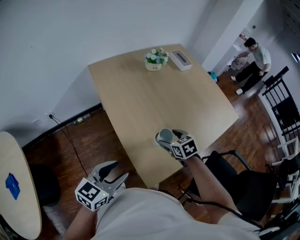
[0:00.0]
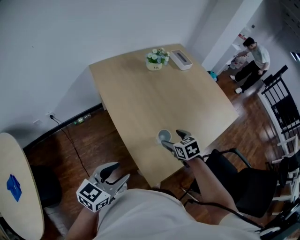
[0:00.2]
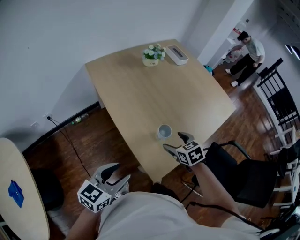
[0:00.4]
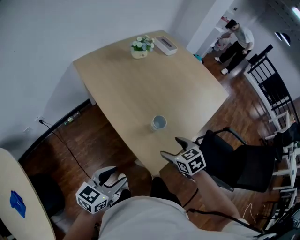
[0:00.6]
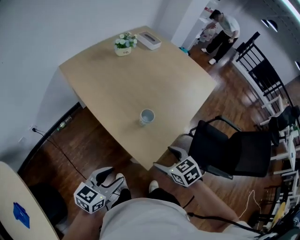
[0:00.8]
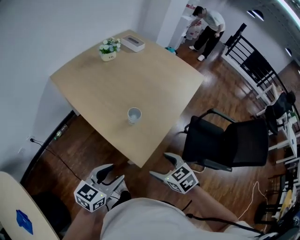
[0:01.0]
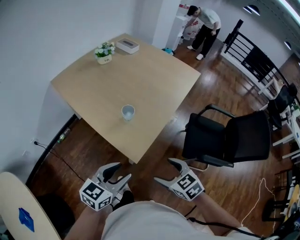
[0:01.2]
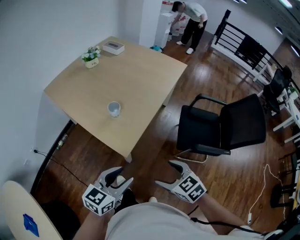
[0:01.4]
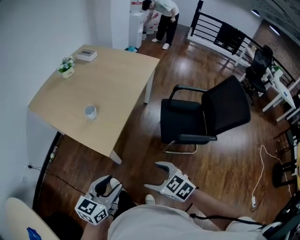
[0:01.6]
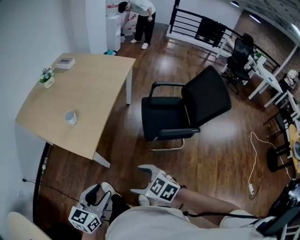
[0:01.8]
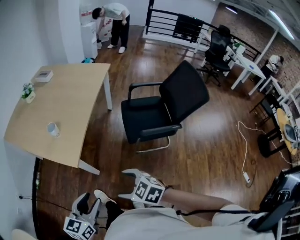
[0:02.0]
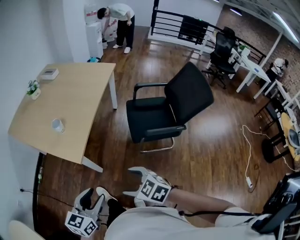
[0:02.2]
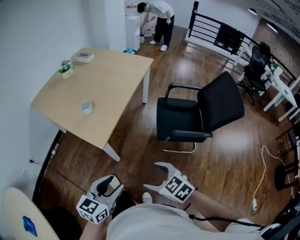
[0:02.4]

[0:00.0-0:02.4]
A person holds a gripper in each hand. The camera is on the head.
0.0 to 1.2 s: The left gripper is displaced backward and to the right by some 15 cm, and swivels about 20 degrees; the right gripper travels backward by about 35 cm.
1.2 to 2.4 s: The right gripper goes some 25 cm backward and to the right. The left gripper moves to the right and backward, about 25 cm.

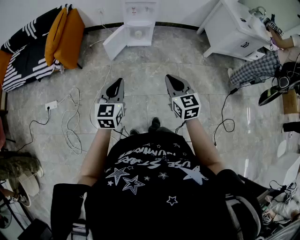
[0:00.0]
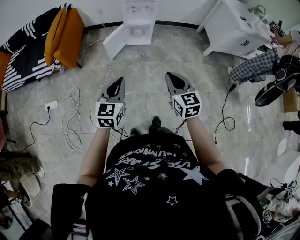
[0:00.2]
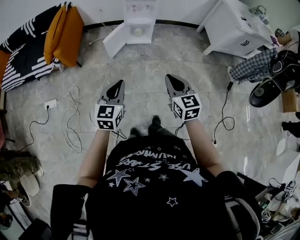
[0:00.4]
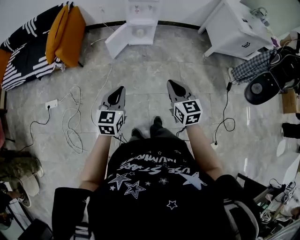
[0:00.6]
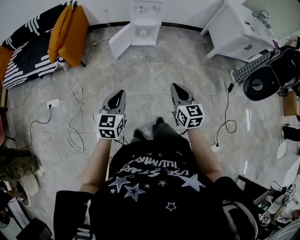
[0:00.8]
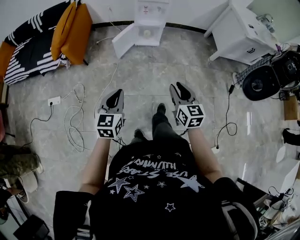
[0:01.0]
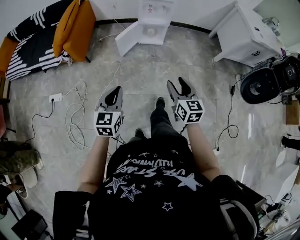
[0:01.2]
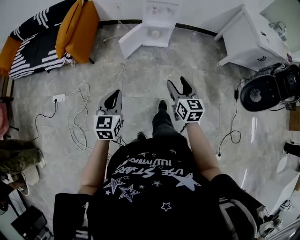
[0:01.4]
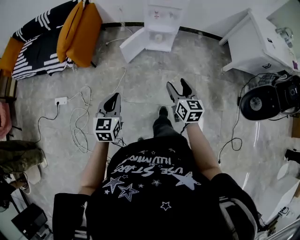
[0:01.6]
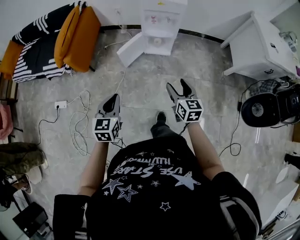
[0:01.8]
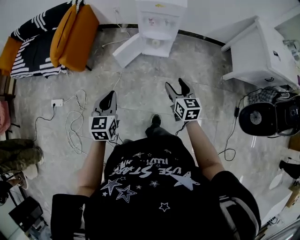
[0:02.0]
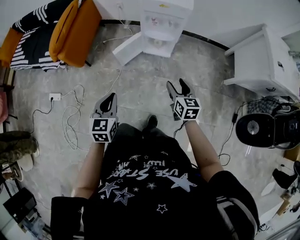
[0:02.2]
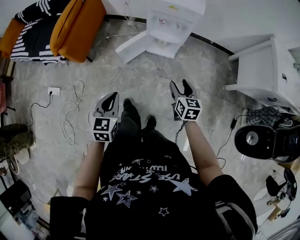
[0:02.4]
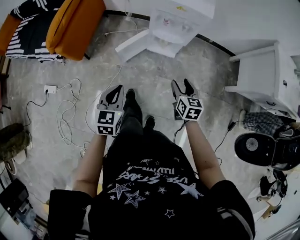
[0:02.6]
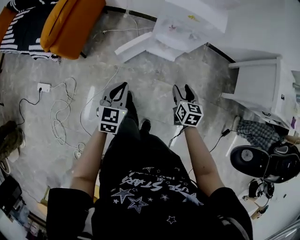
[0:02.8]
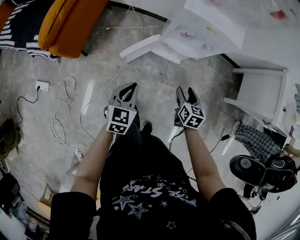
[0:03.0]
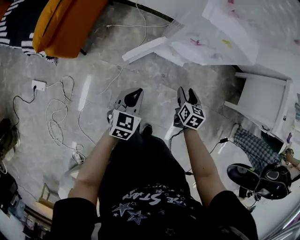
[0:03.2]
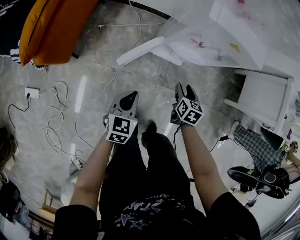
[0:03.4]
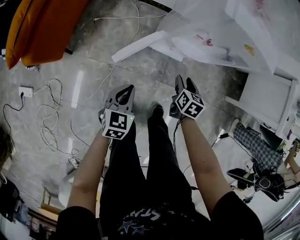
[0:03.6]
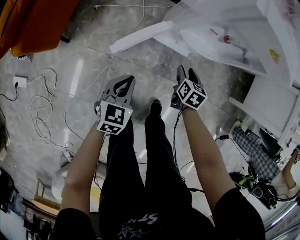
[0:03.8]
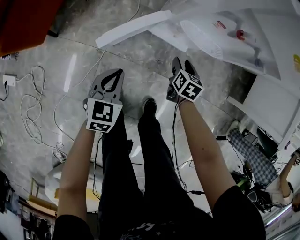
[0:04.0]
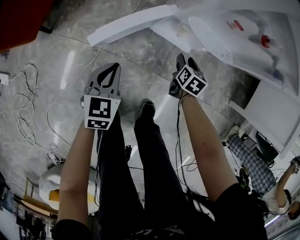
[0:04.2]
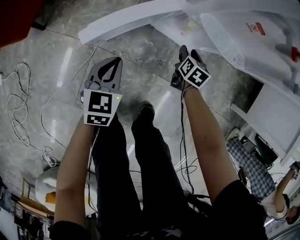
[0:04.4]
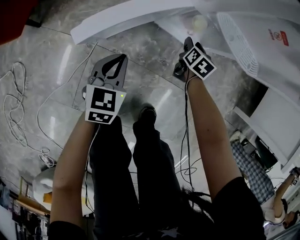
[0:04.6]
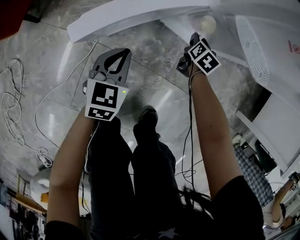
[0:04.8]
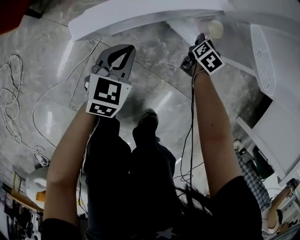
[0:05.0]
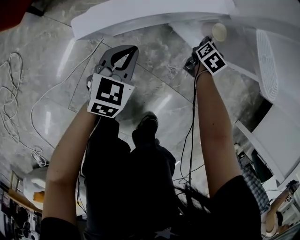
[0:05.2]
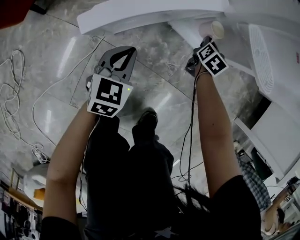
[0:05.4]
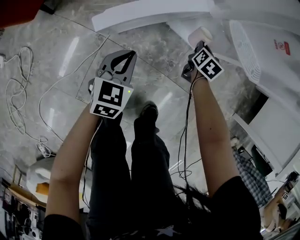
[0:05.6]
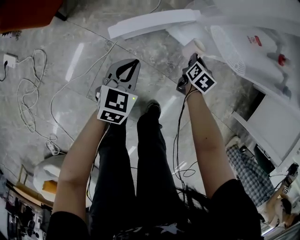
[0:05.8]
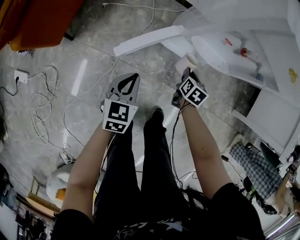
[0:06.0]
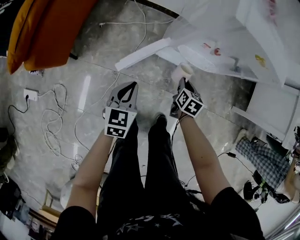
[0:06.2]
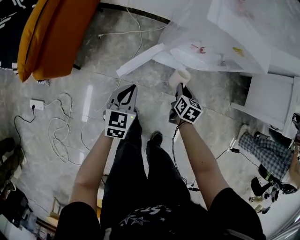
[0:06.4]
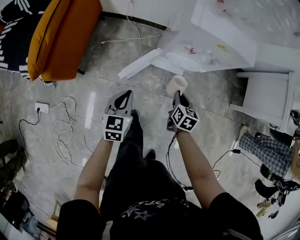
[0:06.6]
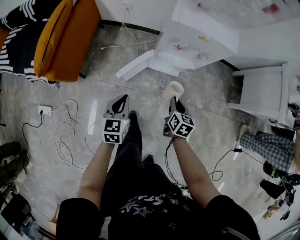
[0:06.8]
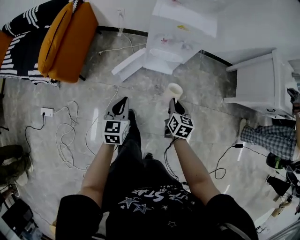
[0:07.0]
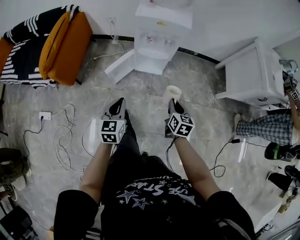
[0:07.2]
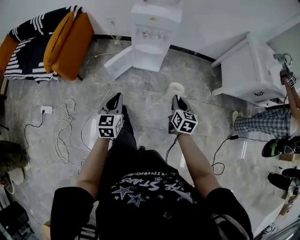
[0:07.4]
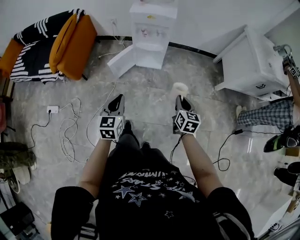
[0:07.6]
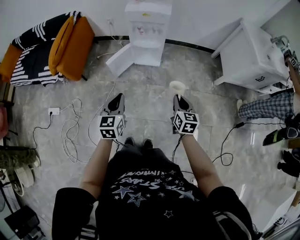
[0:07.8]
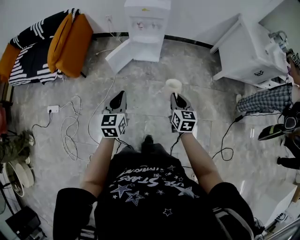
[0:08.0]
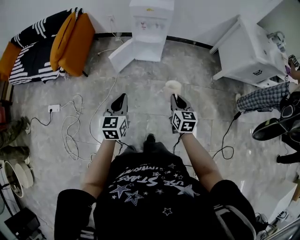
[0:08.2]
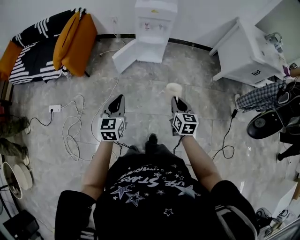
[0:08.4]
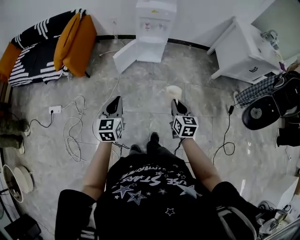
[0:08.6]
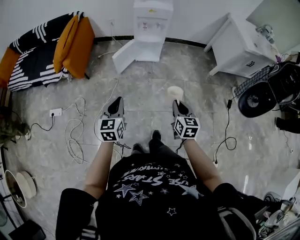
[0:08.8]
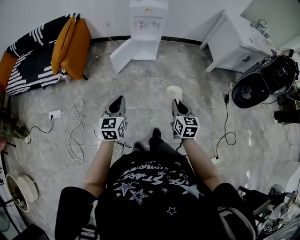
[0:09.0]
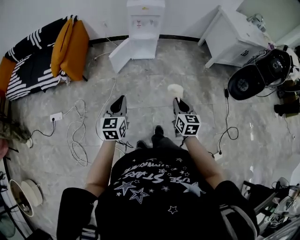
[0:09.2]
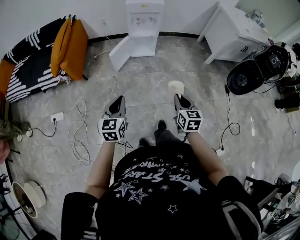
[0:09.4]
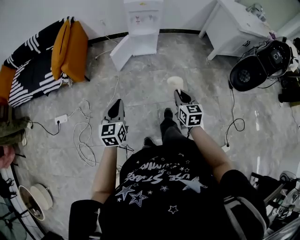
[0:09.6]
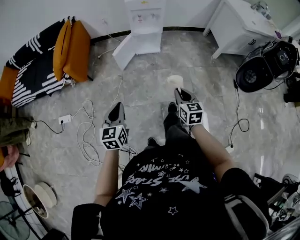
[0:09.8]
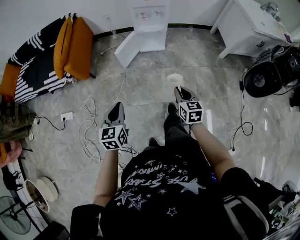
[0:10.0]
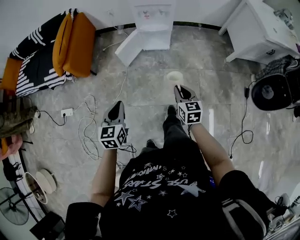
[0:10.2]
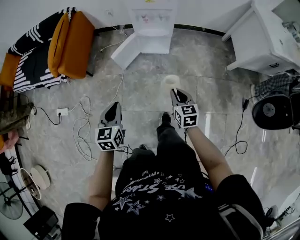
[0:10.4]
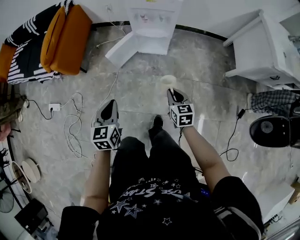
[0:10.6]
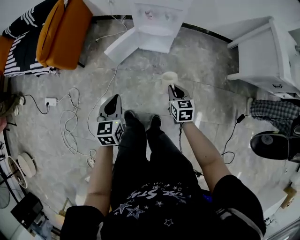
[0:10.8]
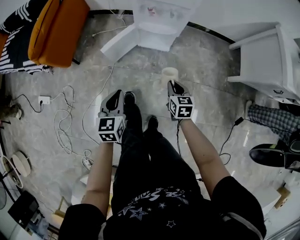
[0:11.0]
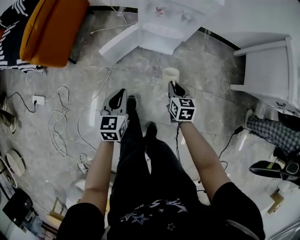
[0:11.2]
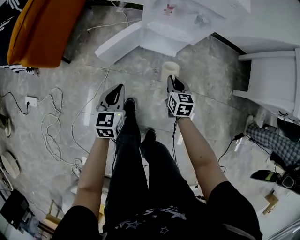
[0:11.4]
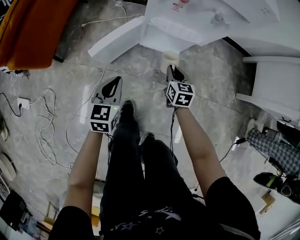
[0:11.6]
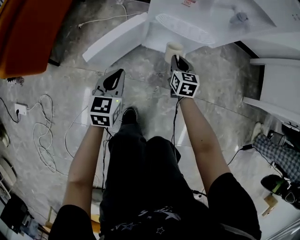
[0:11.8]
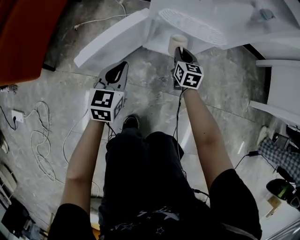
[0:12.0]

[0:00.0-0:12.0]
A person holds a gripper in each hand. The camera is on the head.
0.0 to 1.6 s: The left gripper heads to the left, forward and downward, covering about 10 cm. The right gripper travels forward and downward by some 15 cm, and opens up.
1.6 to 3.0 s: The right gripper heads forward and downward, covering roughly 35 cm, and rotates roughly 20 degrees; the left gripper is displaced forward by some 35 cm.
3.0 to 4.4 s: The left gripper is displaced downward by approximately 40 cm, while the right gripper goes approximately 50 cm downward and forward.
4.4 to 6.0 s: The right gripper travels upward and backward by some 15 cm, and closes up. Meanwhile the left gripper heads upward, covering some 15 cm.
6.0 to 7.6 s: Both grippers move upward, backward and to the right, roughly 60 cm. The right gripper rotates approximately 30 degrees.
7.6 to 9.0 s: The grippers both shift backward and to the left by roughly 25 cm.
9.0 to 10.4 s: The right gripper is displaced forward and downward by approximately 25 cm. The left gripper shifts roughly 15 cm forward.
10.4 to 12.0 s: The pair of grippers is taken forward, some 50 cm. The grippers both shift downward by approximately 40 cm.

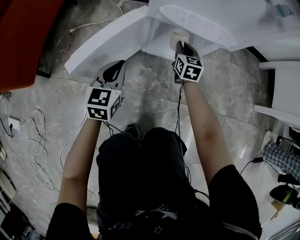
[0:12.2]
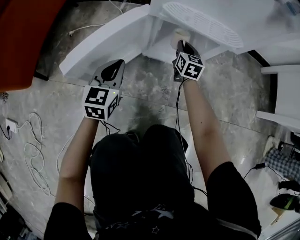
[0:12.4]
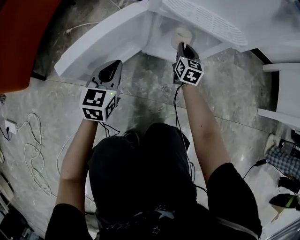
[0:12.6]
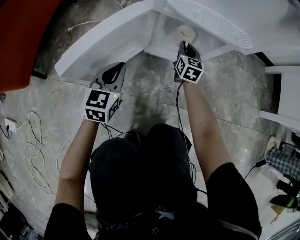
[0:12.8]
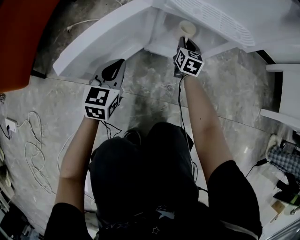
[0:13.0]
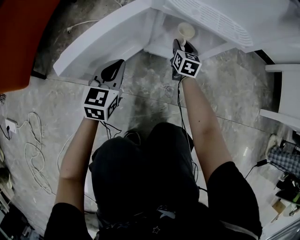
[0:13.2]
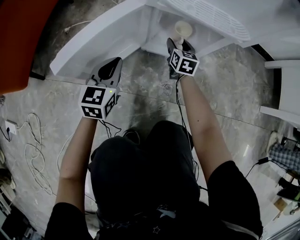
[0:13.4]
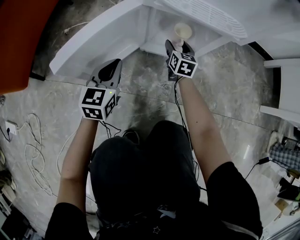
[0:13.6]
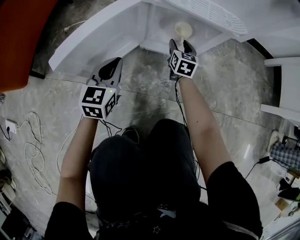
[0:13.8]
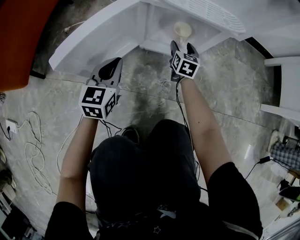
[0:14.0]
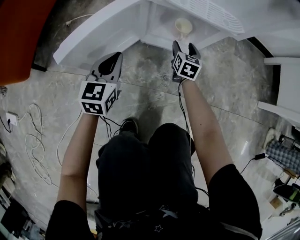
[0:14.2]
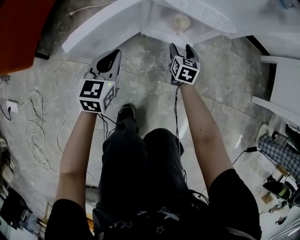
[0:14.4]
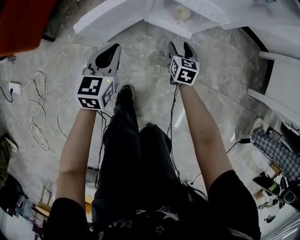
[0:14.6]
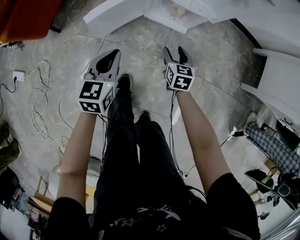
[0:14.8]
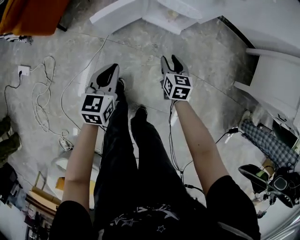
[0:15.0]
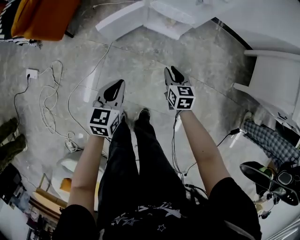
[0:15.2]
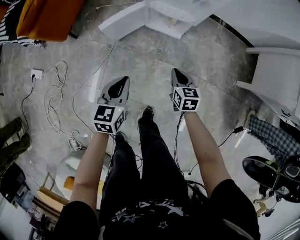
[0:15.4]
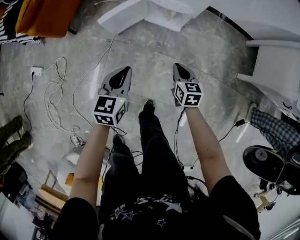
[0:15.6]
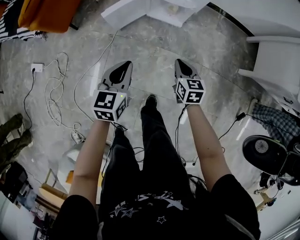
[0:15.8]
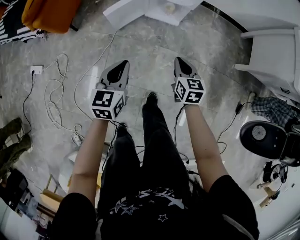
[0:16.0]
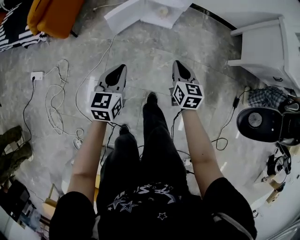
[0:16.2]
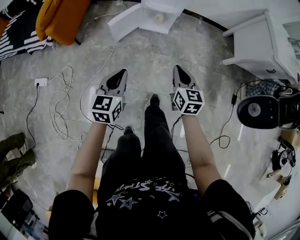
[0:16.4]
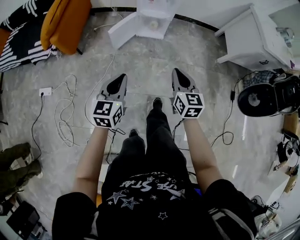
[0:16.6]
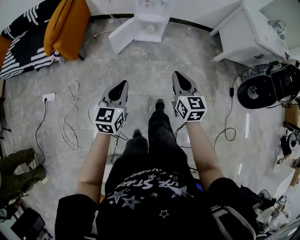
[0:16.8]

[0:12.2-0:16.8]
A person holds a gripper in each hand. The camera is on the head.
12.2 to 13.8 s: The left gripper travels downward by roughly 5 cm. Meanwhile the right gripper heads downward, covering approximately 10 cm, and opens.
13.8 to 15.2 s: Both grippers move upward and backward, about 50 cm. The right gripper turns by some 30 degrees, and closes.
15.2 to 16.8 s: The left gripper shifts roughly 40 cm backward and upward, and turns by about 20 degrees. The right gripper travels upward and backward by roughly 50 cm, swivels approximately 30 degrees, and closes.

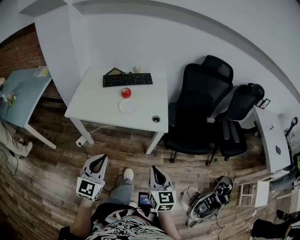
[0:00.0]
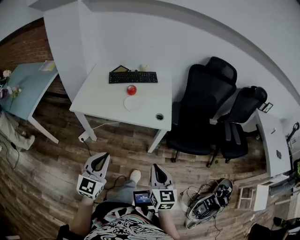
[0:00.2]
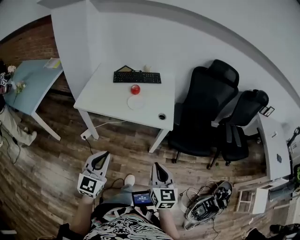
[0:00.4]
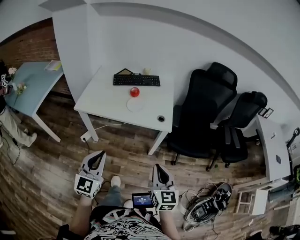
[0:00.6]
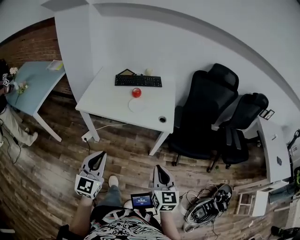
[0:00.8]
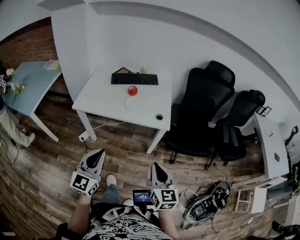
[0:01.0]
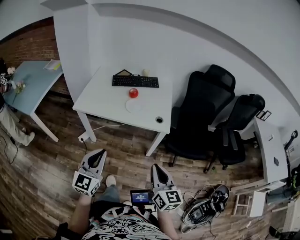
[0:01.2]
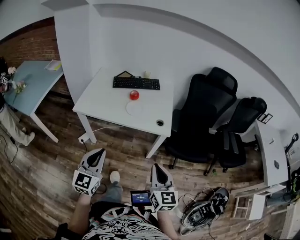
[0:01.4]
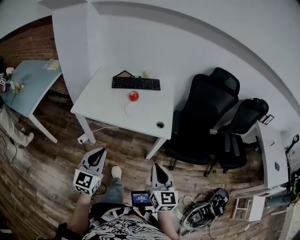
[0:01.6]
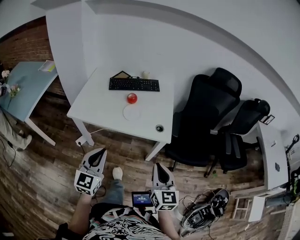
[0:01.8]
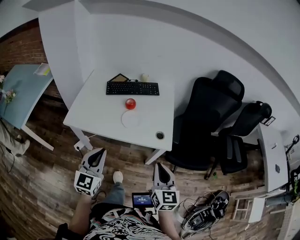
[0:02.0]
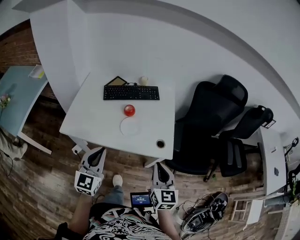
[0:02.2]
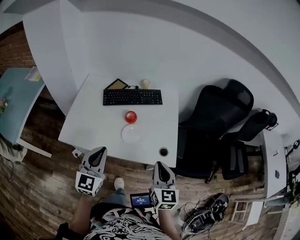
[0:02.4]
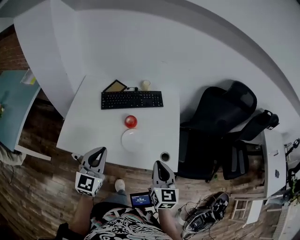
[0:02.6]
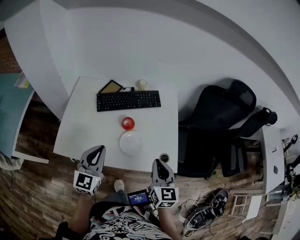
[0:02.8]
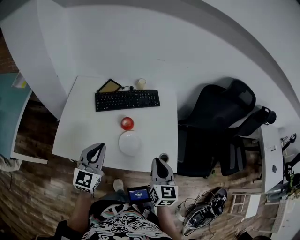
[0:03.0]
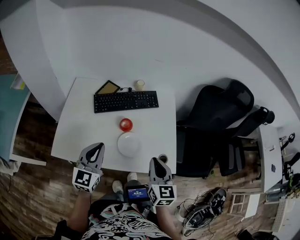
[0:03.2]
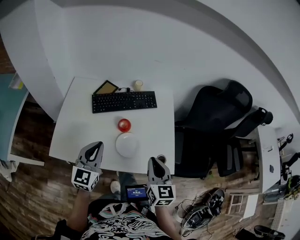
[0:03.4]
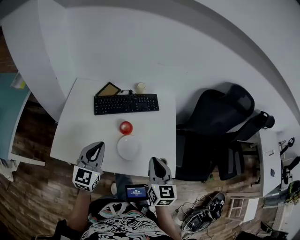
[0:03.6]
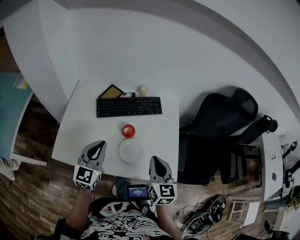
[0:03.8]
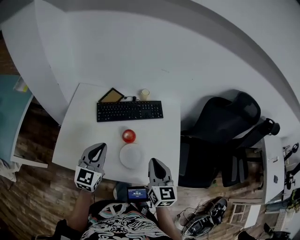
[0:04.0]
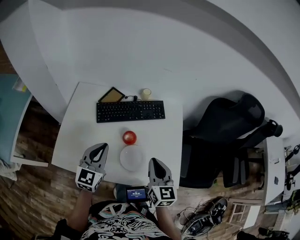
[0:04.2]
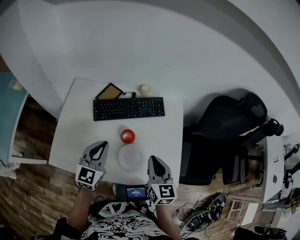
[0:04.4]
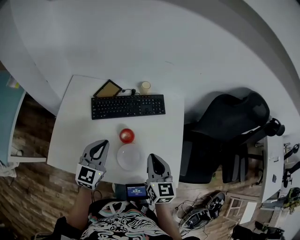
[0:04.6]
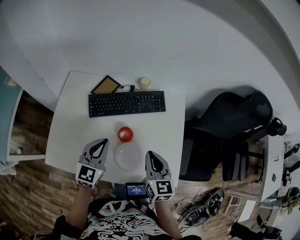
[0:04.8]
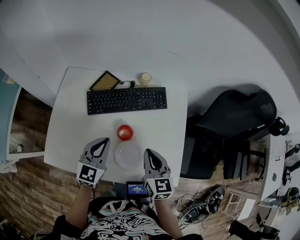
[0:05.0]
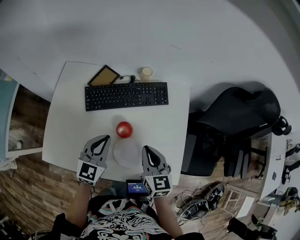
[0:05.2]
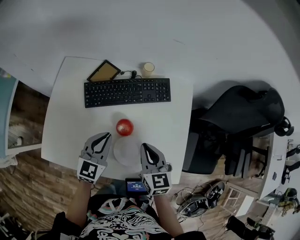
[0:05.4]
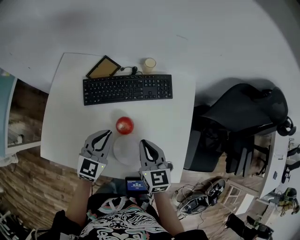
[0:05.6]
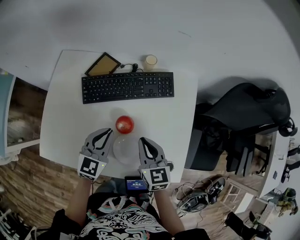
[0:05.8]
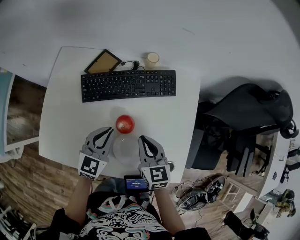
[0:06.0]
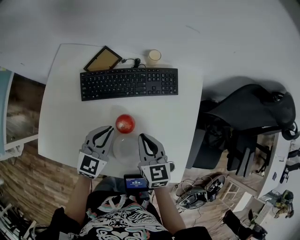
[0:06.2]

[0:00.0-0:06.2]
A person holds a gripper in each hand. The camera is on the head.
1.6 to 3.2 s: Both grippers travel together forward, approximately 40 cm.
3.2 to 4.6 s: The right gripper goes some 15 cm forward. The left gripper shifts about 15 cm forward and downward.
4.6 to 6.2 s: Both grippers move downward and forward, about 15 cm.
